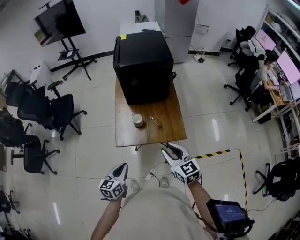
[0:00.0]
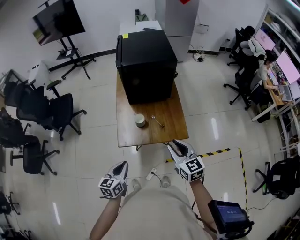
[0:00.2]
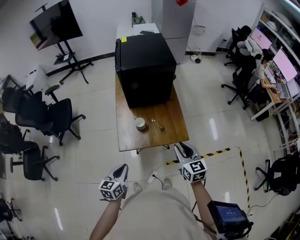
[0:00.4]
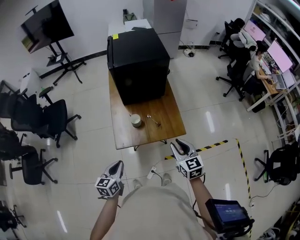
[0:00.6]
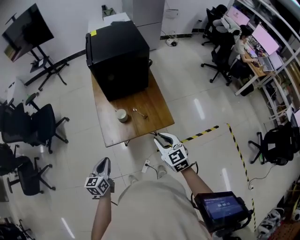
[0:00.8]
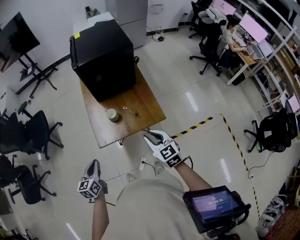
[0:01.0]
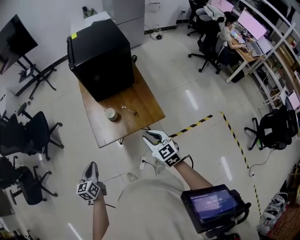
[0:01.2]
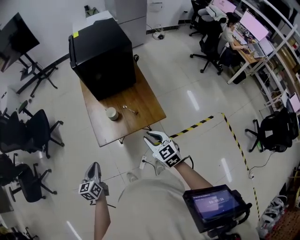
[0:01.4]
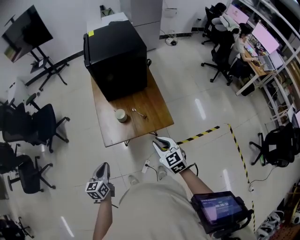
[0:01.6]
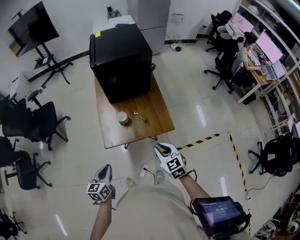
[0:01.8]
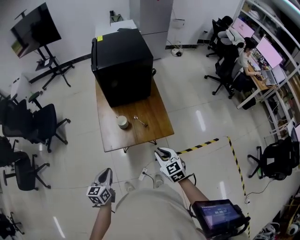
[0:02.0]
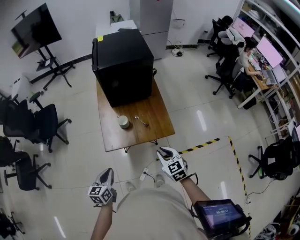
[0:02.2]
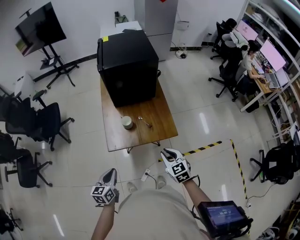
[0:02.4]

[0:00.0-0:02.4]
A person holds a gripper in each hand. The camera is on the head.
0:00.0 to 0:01.2: The right gripper is displaced downward by about 5 cm; the left gripper heads to the left, covering some 10 cm.
0:01.2 to 0:02.4: The right gripper shifts by roughly 5 cm; the left gripper shifts roughly 5 cm to the right.

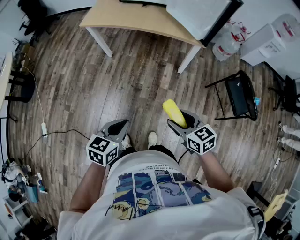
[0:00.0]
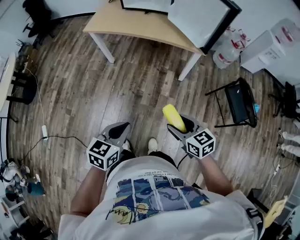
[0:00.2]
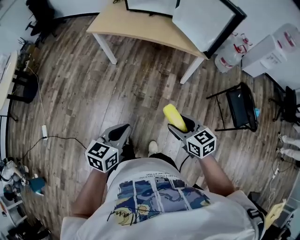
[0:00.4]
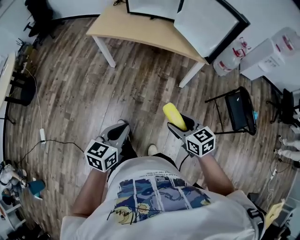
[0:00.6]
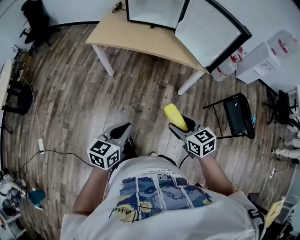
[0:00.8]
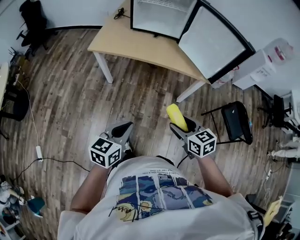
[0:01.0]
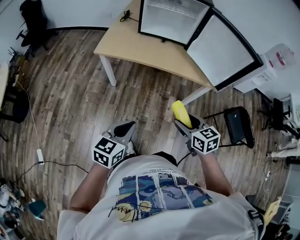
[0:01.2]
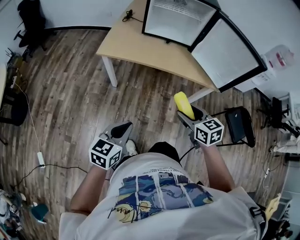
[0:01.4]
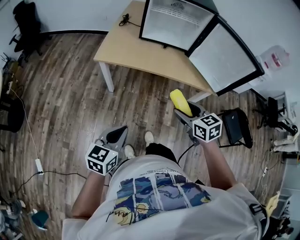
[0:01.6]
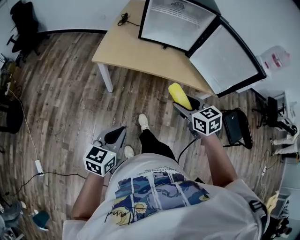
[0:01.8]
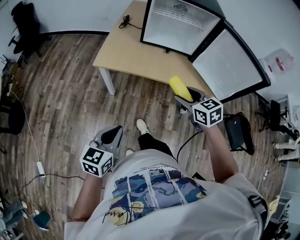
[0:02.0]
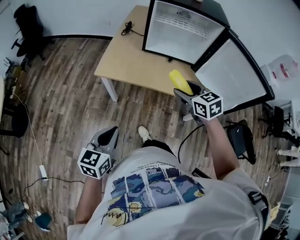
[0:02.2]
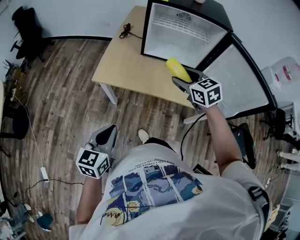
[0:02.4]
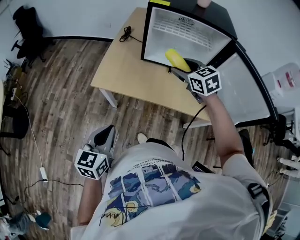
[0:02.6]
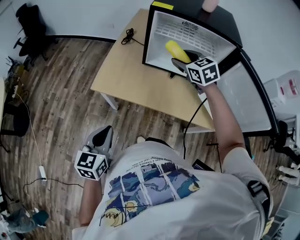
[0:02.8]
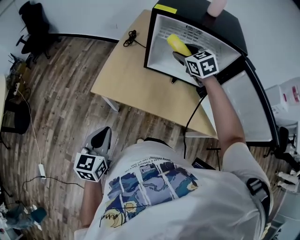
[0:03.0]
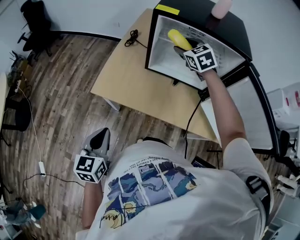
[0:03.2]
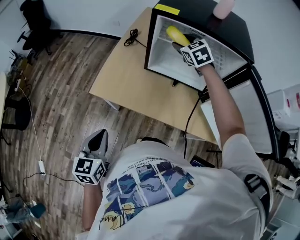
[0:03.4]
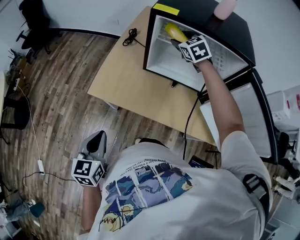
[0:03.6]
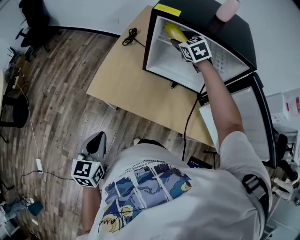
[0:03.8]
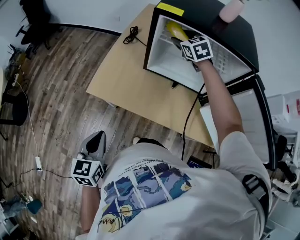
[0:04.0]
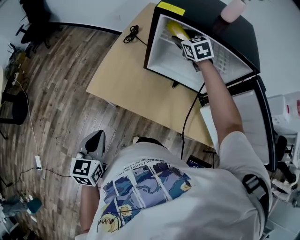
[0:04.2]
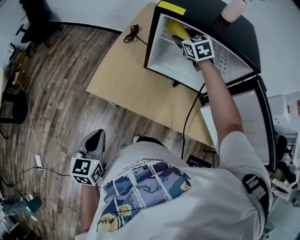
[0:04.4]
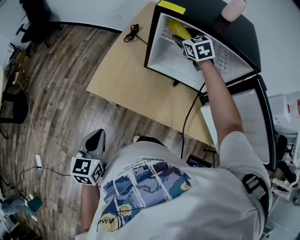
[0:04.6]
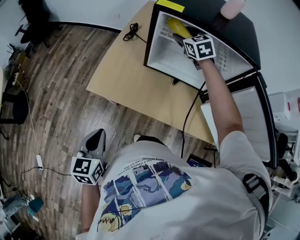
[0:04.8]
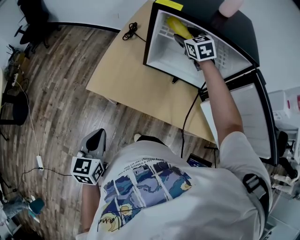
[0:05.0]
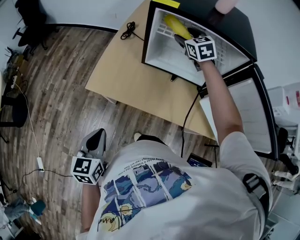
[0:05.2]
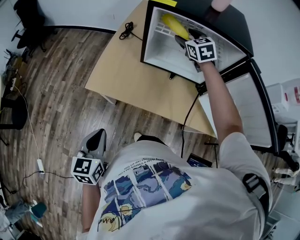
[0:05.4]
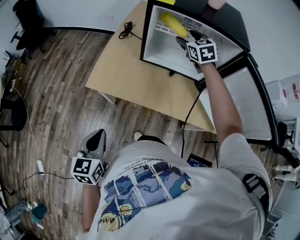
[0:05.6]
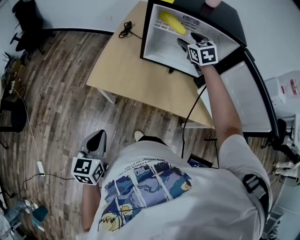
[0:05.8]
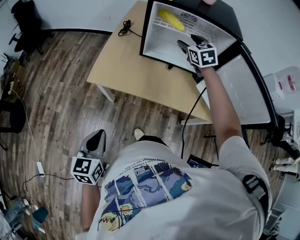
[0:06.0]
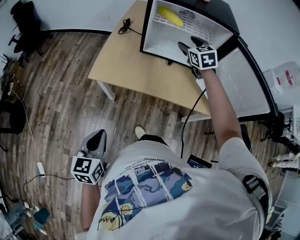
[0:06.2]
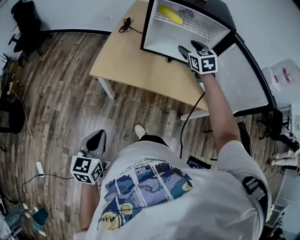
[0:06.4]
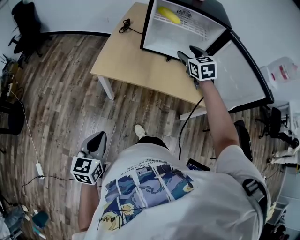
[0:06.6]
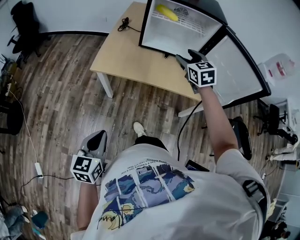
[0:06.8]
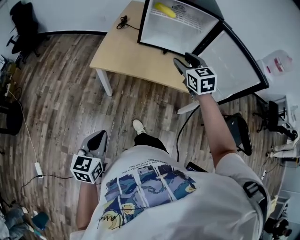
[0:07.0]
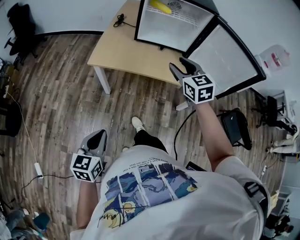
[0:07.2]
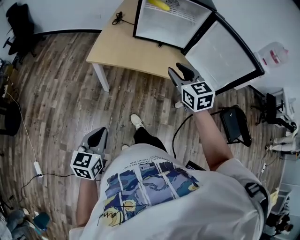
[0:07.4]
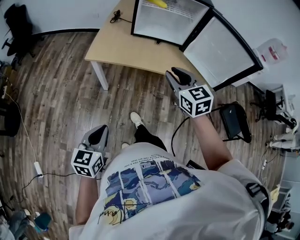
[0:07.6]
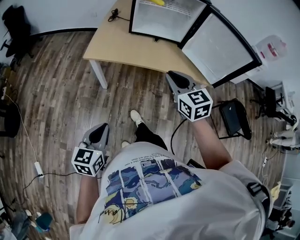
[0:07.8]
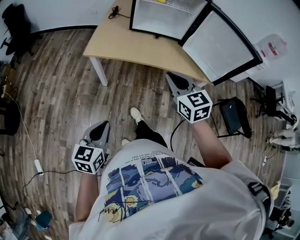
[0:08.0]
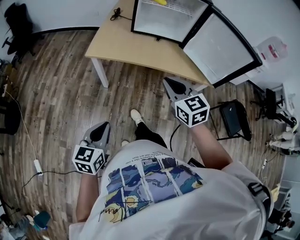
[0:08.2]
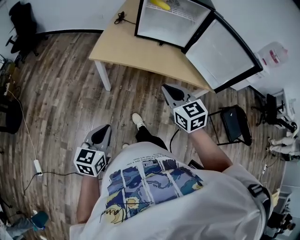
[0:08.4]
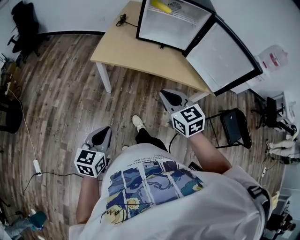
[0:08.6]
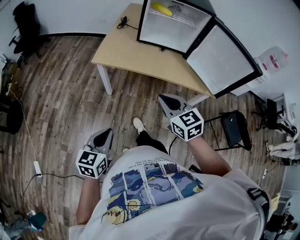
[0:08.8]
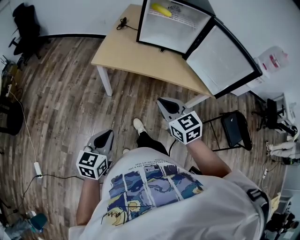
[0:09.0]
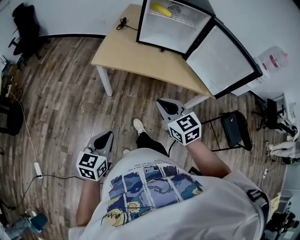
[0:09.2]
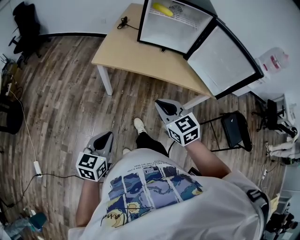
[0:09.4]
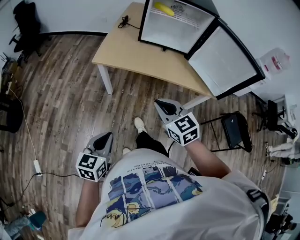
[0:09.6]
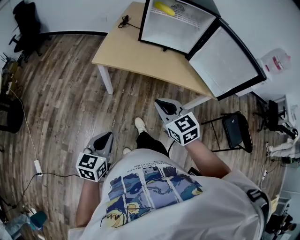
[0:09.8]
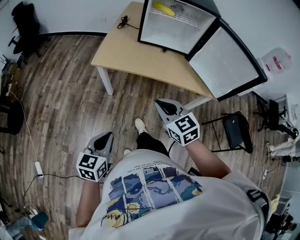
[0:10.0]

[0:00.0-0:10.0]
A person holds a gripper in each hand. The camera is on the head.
0:00.0 to 0:01.4: The two grippers go some 30 cm forward and to the left.
0:01.4 to 0:02.8: The right gripper heads forward, covering about 50 cm, and changes its angle by about 20 degrees, while the left gripper is displaced forward by some 25 cm.
0:02.8 to 0:04.2: The right gripper heads forward, covering roughly 20 cm; the left gripper heads forward, covering roughly 5 cm.
0:04.2 to 0:05.8: The left gripper is displaced backward by roughly 5 cm. Meanwhile the right gripper is displaced backward by approximately 10 cm.
0:05.8 to 0:07.2: The right gripper shifts some 35 cm backward; the left gripper moves backward, roughly 20 cm.
0:07.2 to 0:08.6: The right gripper is displaced backward by roughly 15 cm, and closes up.
0:08.6 to 0:10.0: There are only small adjustments of the grippers.

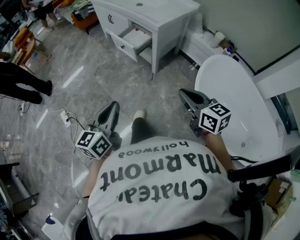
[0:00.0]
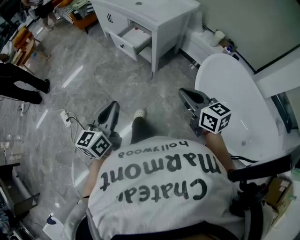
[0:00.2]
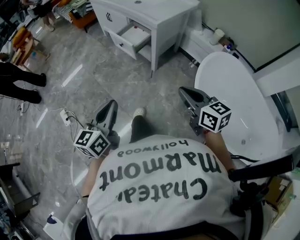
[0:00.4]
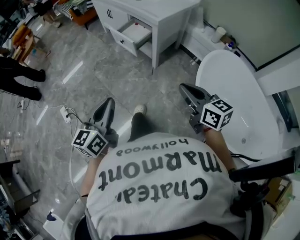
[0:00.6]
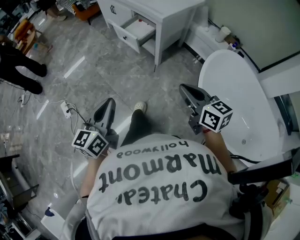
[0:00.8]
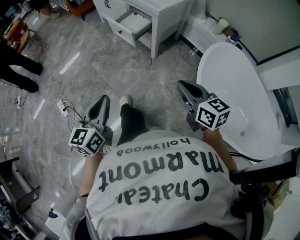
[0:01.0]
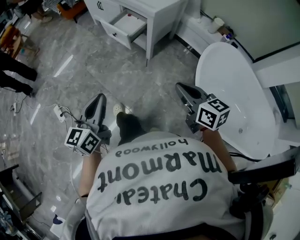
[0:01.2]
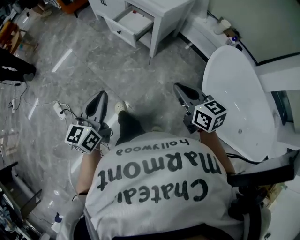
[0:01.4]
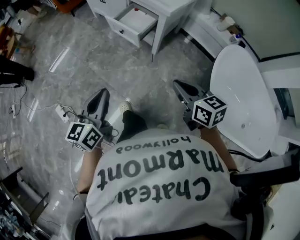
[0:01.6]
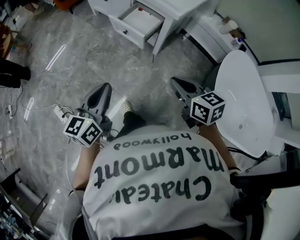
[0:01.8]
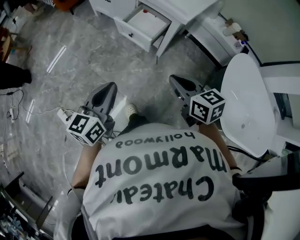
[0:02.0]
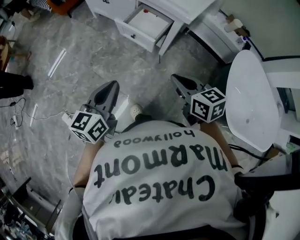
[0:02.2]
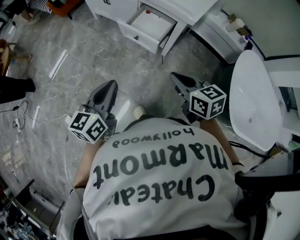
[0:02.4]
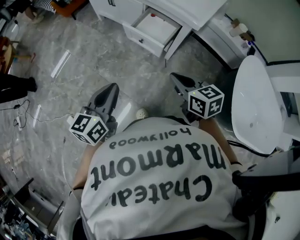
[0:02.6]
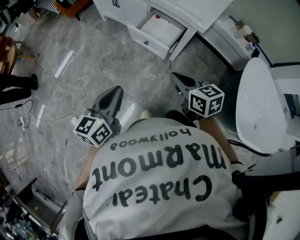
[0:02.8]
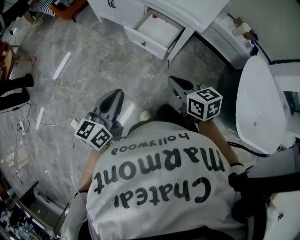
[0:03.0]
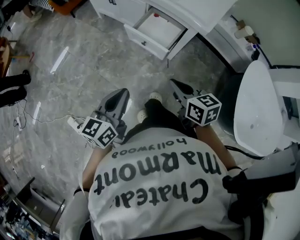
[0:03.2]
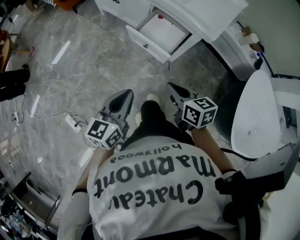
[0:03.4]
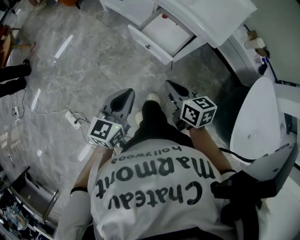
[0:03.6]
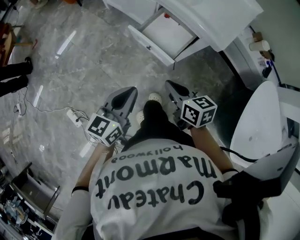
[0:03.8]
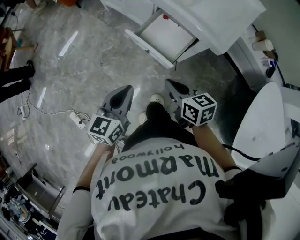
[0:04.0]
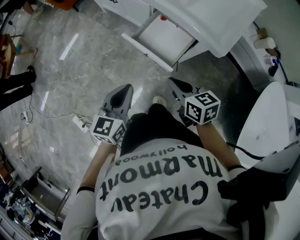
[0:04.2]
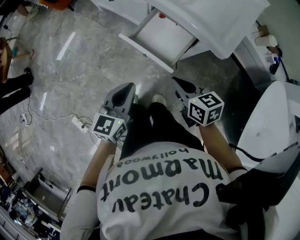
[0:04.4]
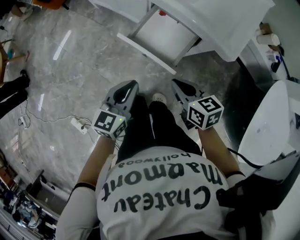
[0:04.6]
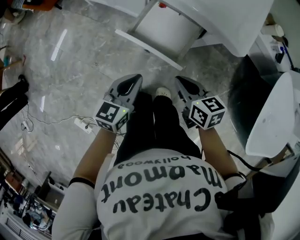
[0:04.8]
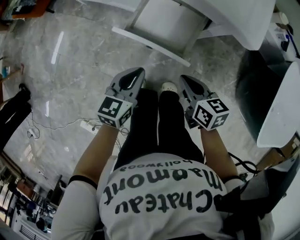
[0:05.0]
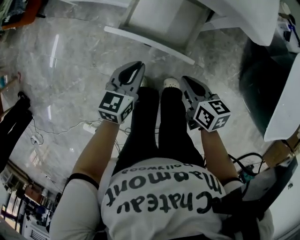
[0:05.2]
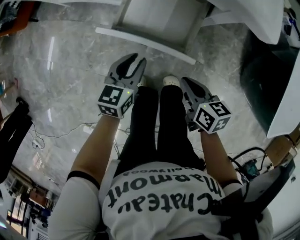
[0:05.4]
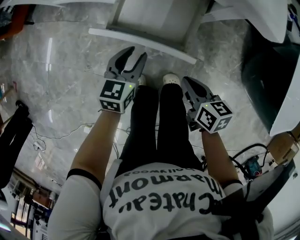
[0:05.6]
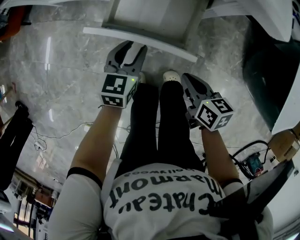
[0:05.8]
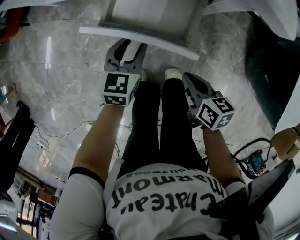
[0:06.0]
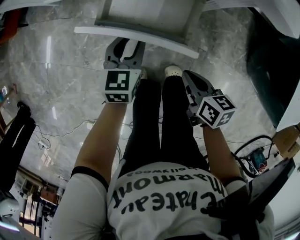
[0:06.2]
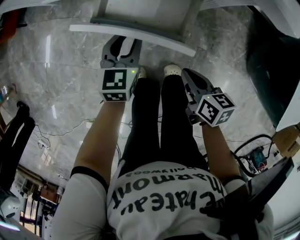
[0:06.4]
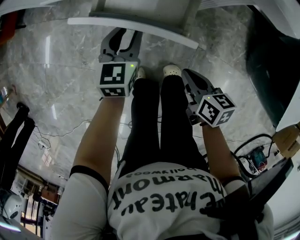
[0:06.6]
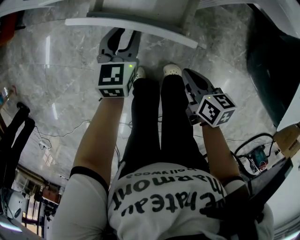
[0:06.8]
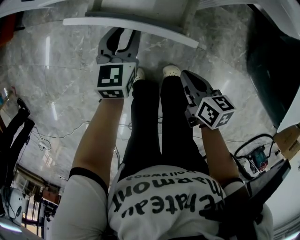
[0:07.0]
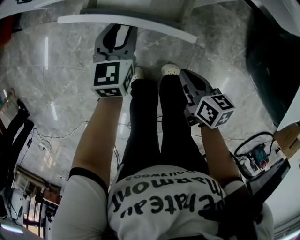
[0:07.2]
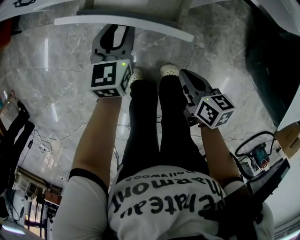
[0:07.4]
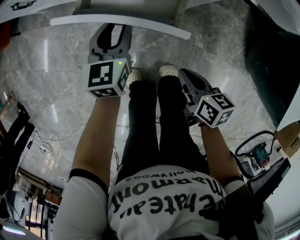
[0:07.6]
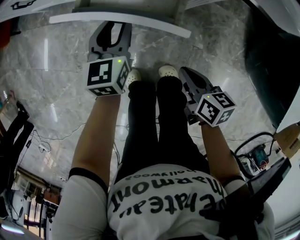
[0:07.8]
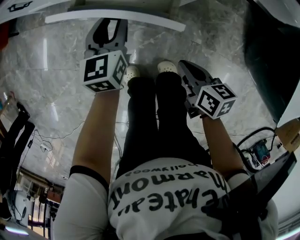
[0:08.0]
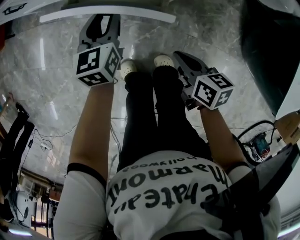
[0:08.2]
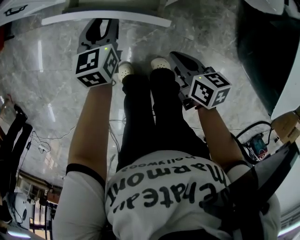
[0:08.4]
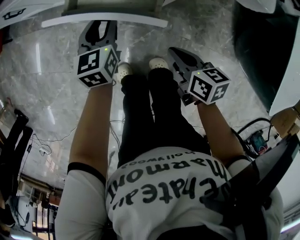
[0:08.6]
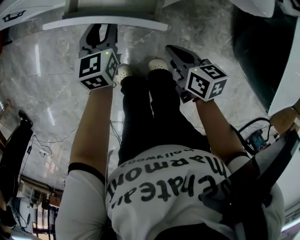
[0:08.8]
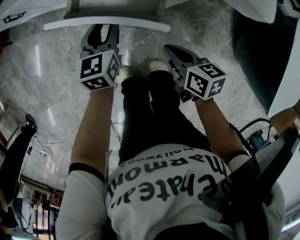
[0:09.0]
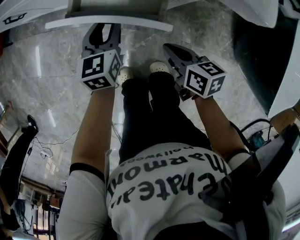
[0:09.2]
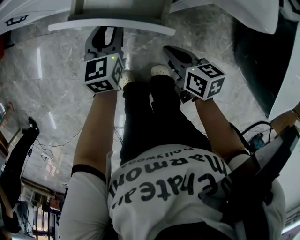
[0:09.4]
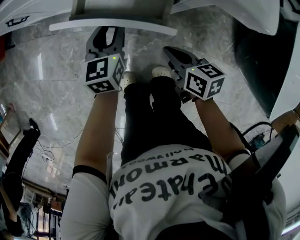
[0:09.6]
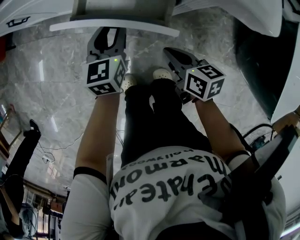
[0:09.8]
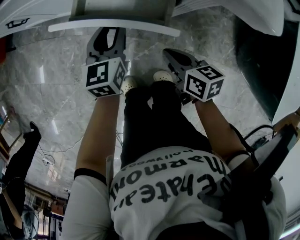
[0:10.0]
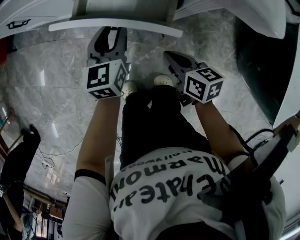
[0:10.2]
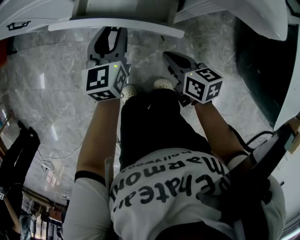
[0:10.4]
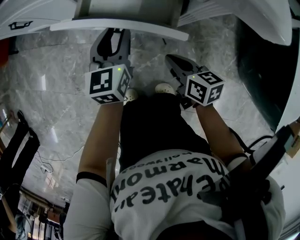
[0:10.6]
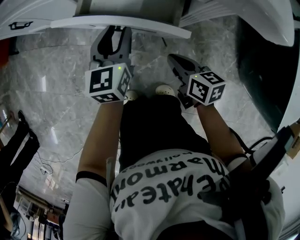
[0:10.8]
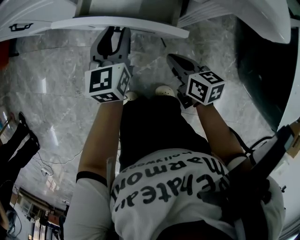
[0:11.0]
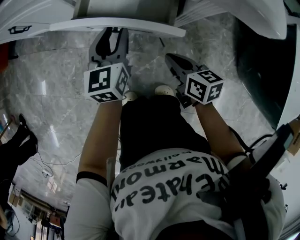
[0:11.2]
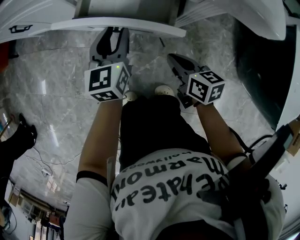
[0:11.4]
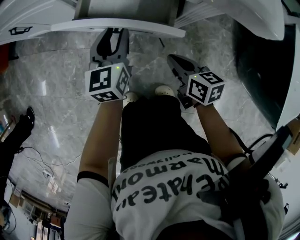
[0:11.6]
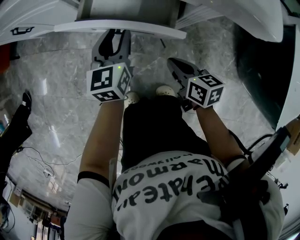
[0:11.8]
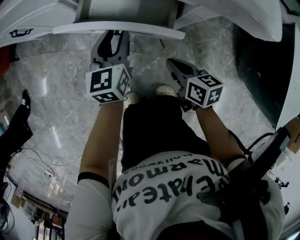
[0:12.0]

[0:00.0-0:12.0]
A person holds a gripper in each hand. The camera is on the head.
0:00.0 to 0:01.6: The grippers both shift forward and to the left by approximately 15 cm.
0:01.6 to 0:03.0: The left gripper goes some 20 cm forward and to the left, while the right gripper is displaced to the left and forward by roughly 25 cm.
0:03.0 to 0:04.4: The right gripper is displaced forward and downward by roughly 20 cm. Meanwhile the left gripper heads forward, downward and to the right, covering some 20 cm.
0:04.4 to 0:06.0: The right gripper moves downward, approximately 20 cm, and swivels about 40 degrees, while the left gripper moves downward and forward, roughly 25 cm, rotates roughly 20 degrees, and opens up.
0:06.0 to 0:07.6: The left gripper shifts some 5 cm forward.
0:07.6 to 0:09.0: The right gripper goes some 5 cm forward.
0:09.0 to 0:10.4: The right gripper moves some 5 cm.
0:10.4 to 0:12.0: The grippers stay close to where they were, moving slightly.
